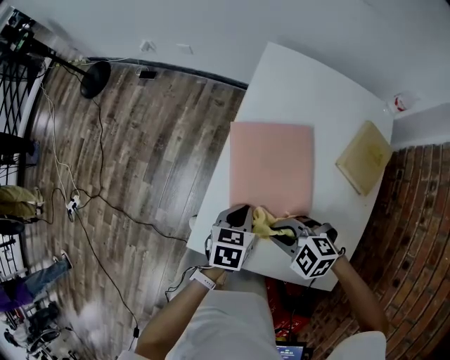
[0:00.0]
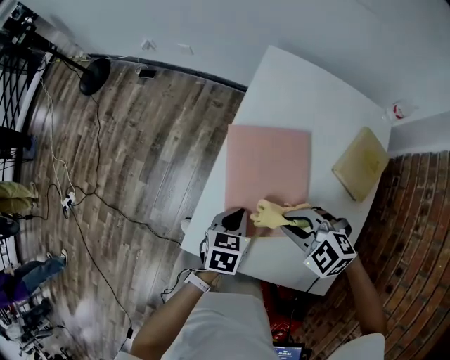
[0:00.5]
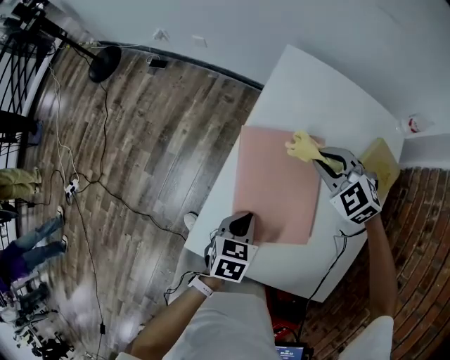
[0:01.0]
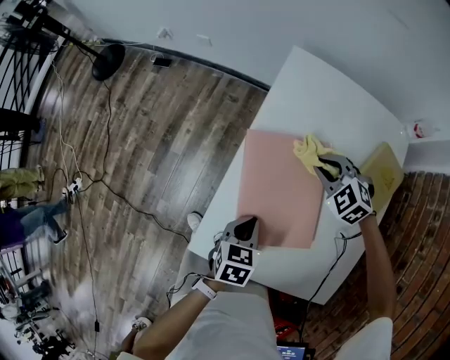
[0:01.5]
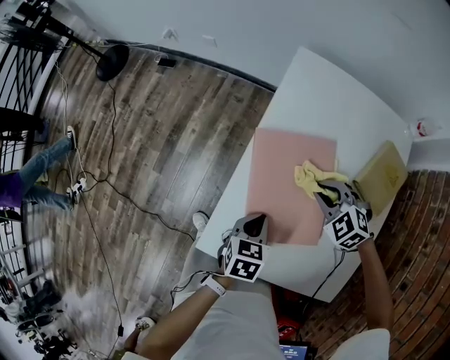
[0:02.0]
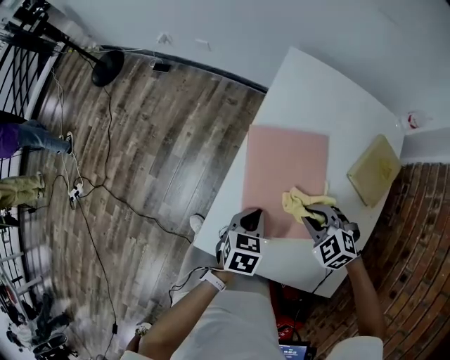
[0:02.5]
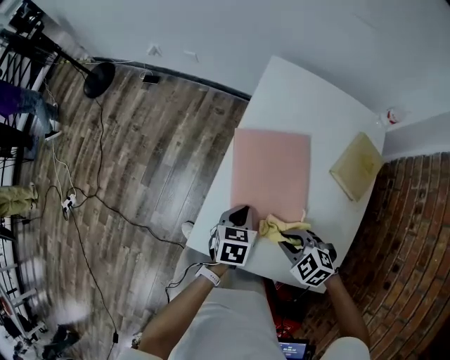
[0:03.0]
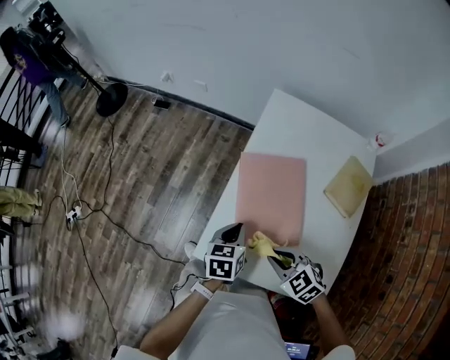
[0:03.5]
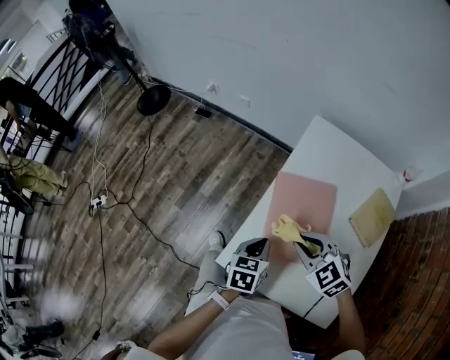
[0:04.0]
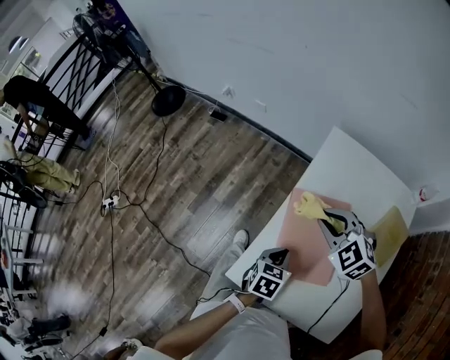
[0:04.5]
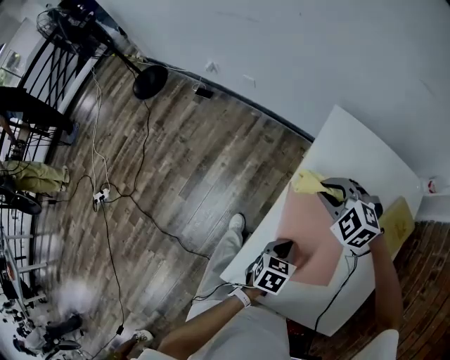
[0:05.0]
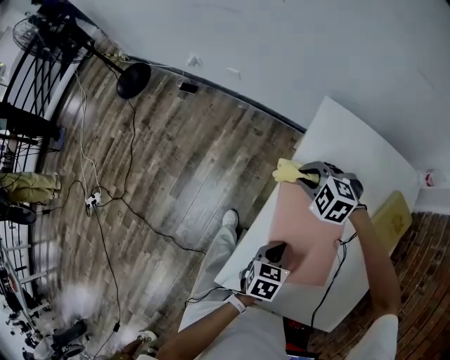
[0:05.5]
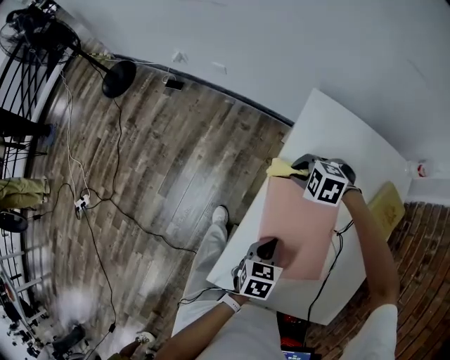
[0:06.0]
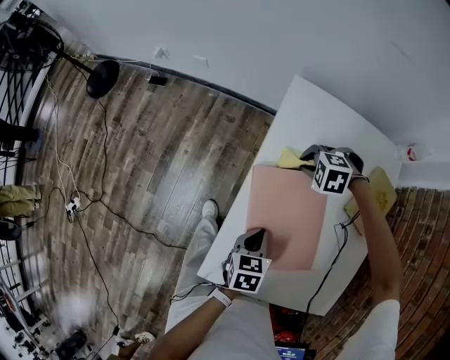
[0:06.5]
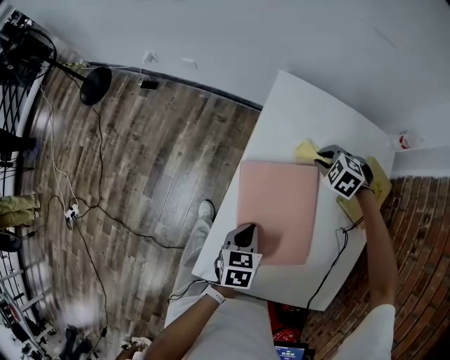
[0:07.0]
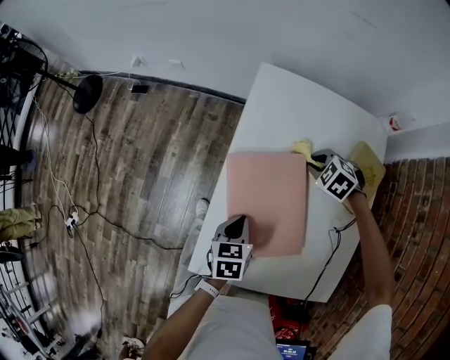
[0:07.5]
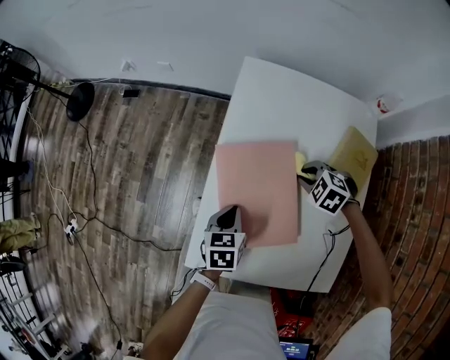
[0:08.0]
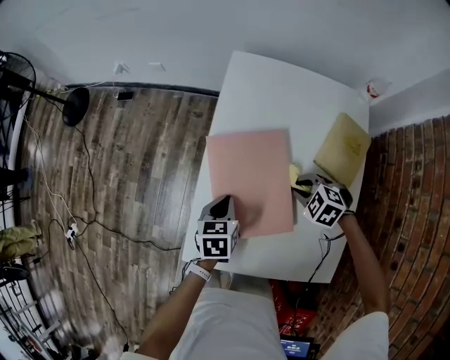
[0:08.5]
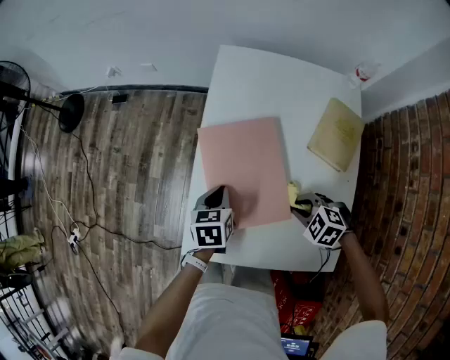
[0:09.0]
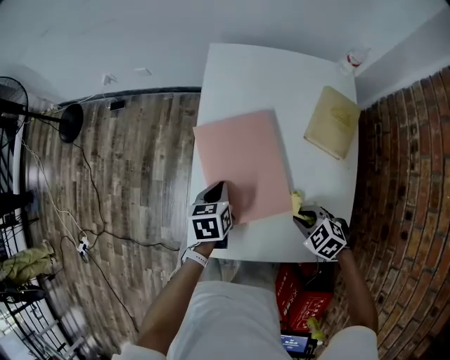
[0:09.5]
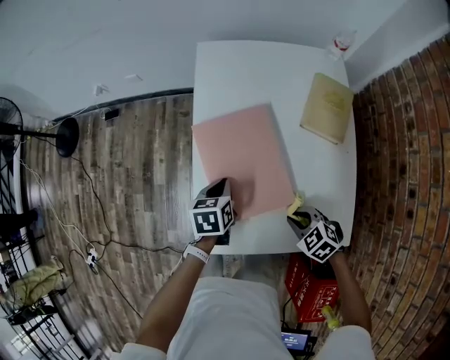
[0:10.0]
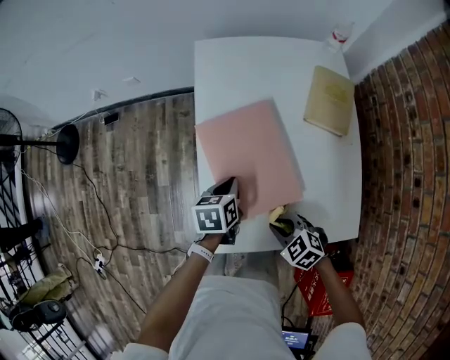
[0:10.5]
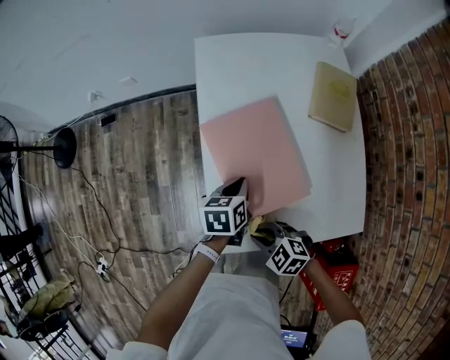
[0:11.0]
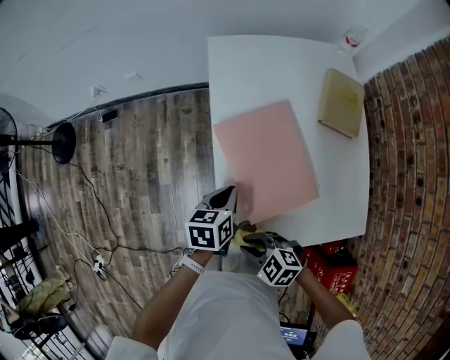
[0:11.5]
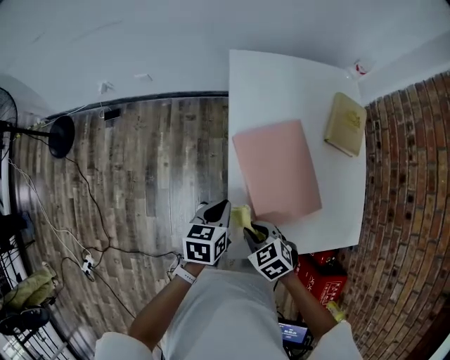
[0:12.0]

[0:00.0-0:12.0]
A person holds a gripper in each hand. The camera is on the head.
0:00.0 to 0:02.0: The right gripper is displaced forward and to the right by approximately 20 cm, and turns by approximately 20 degrees.
0:02.0 to 0:04.0: The right gripper travels upward, to the left and backward by approximately 20 cm. Meanwhile the left gripper shifts about 10 cm upward.
0:04.0 to 0:06.0: The right gripper goes some 30 cm forward and downward, and swivels about 30 degrees; the left gripper shifts some 10 cm downward, to the right and forward.
0:06.0 to 0:08.0: The right gripper shifts by some 20 cm, and turns by some 20 degrees.
0:08.0 to 0:10.0: The right gripper moves backward, about 25 cm, and rotates approximately 30 degrees.
0:10.0 to 0:12.0: The left gripper travels to the left by roughly 10 cm. Meanwhile the right gripper heads to the left, covering approximately 25 cm.

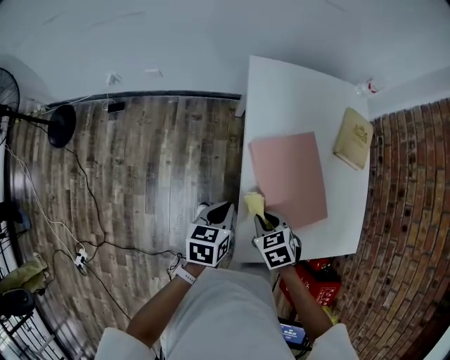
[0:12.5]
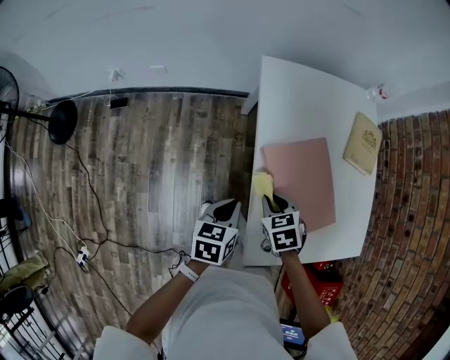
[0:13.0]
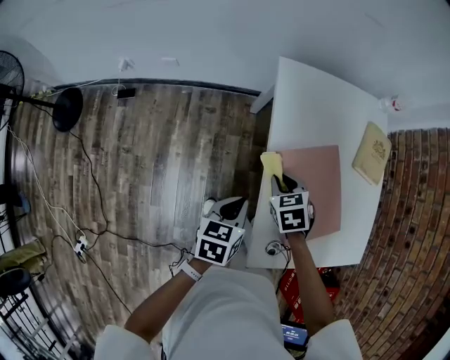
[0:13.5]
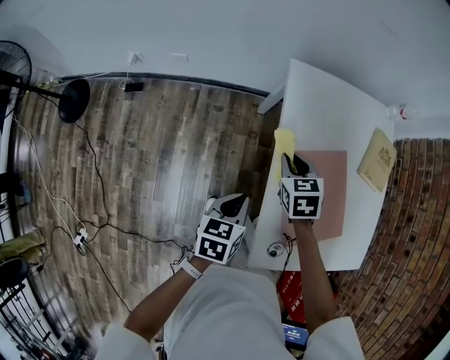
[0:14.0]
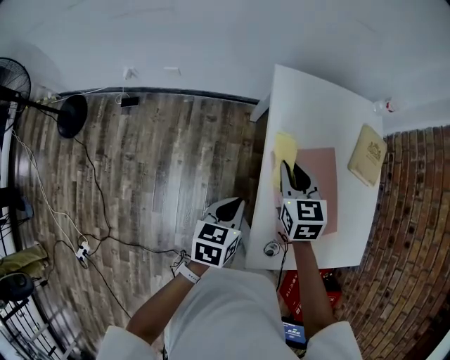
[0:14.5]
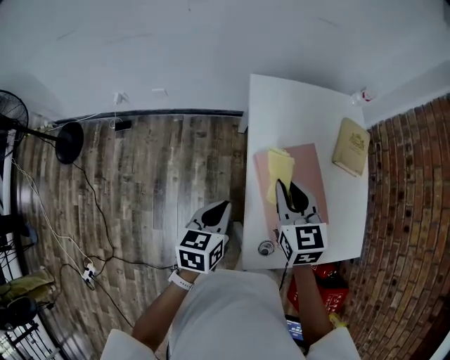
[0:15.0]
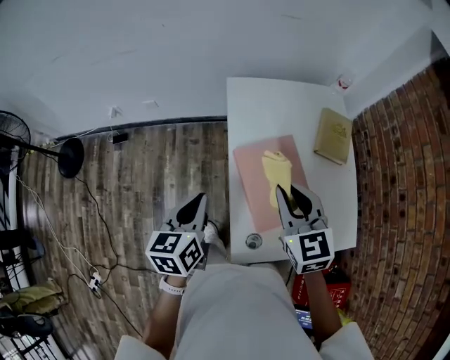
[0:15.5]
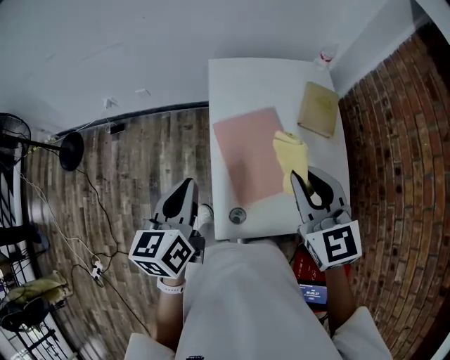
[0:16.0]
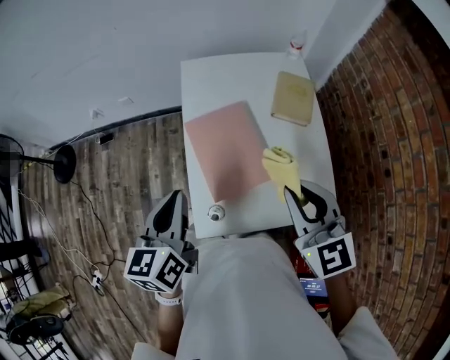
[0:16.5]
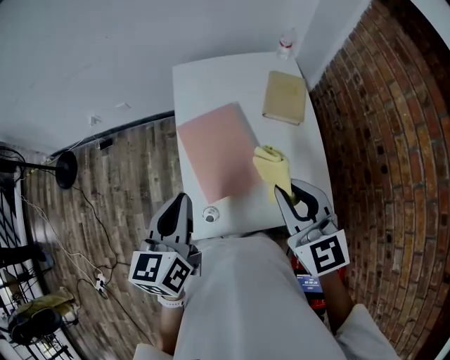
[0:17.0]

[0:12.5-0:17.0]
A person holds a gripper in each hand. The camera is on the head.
0:12.5 to 0:14.5: The right gripper goes approximately 20 cm forward and upward, and changes its angle by approximately 30 degrees. The left gripper shifts by about 5 cm.
0:14.5 to 0:17.0: The left gripper goes roughly 30 cm upward, to the right and backward, and turns by approximately 20 degrees. The right gripper shifts roughly 40 cm to the right, backward and upward, and swivels roughly 20 degrees.

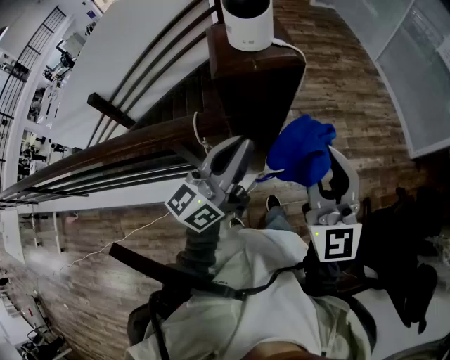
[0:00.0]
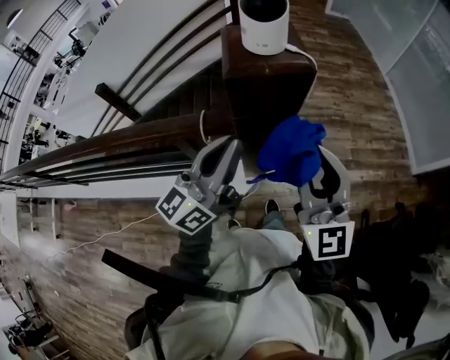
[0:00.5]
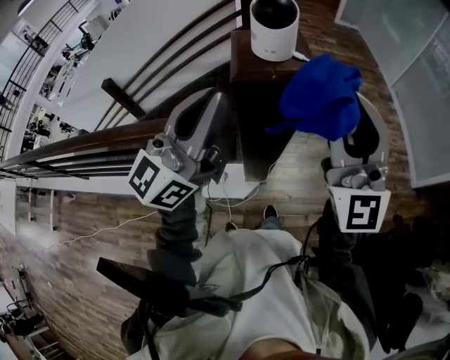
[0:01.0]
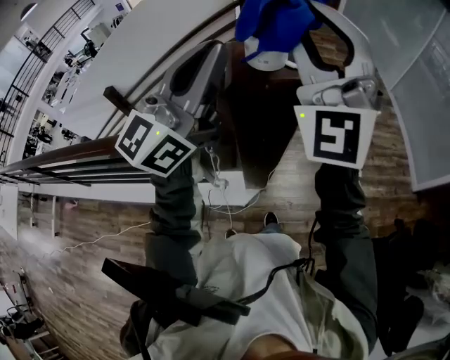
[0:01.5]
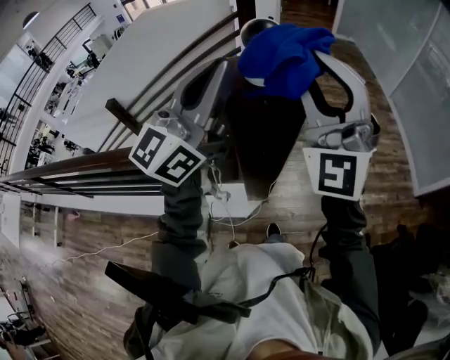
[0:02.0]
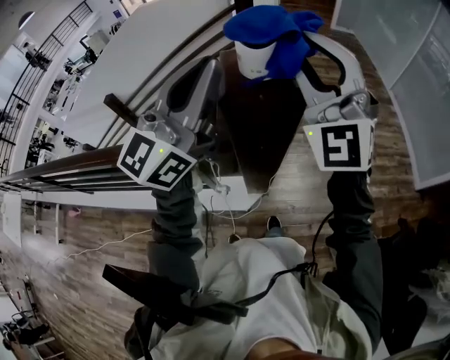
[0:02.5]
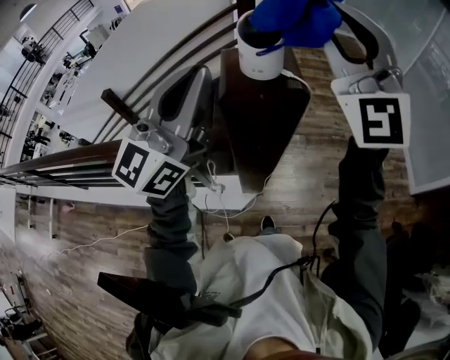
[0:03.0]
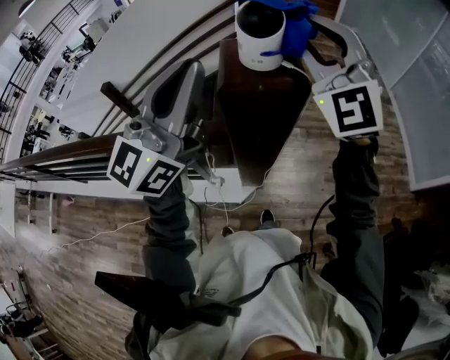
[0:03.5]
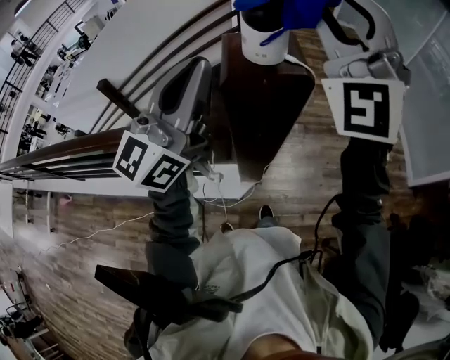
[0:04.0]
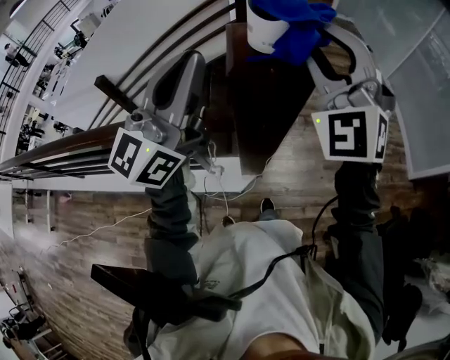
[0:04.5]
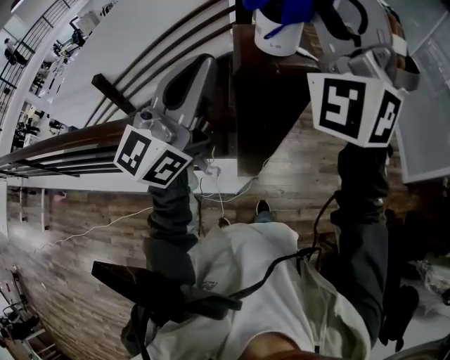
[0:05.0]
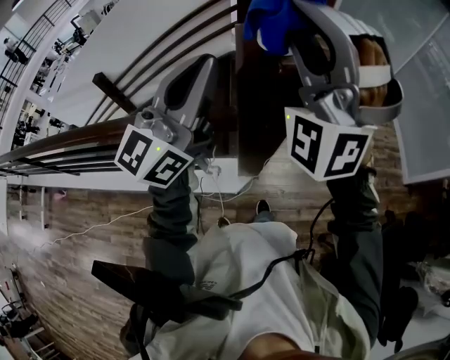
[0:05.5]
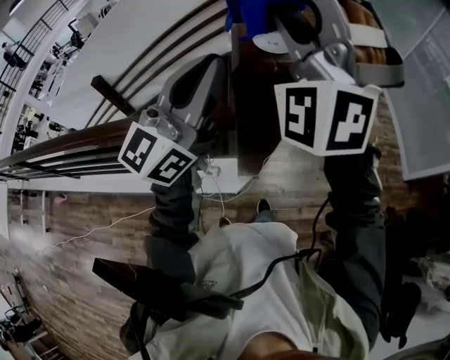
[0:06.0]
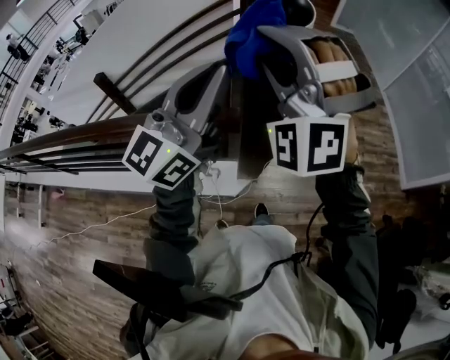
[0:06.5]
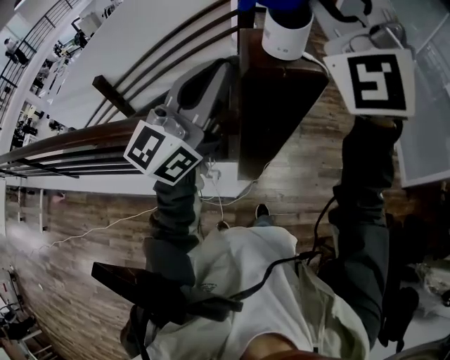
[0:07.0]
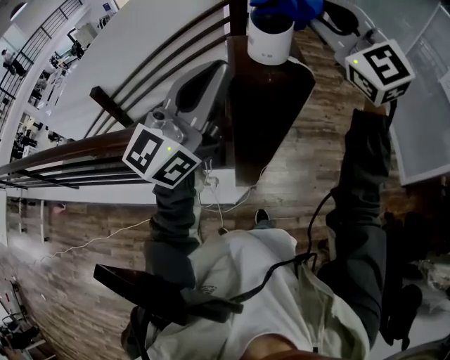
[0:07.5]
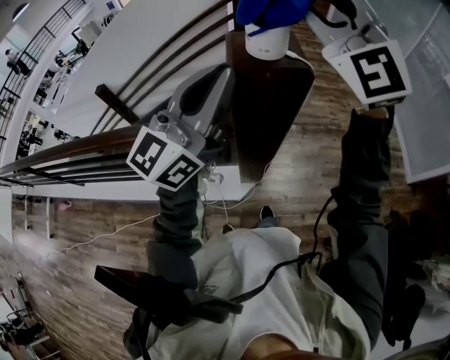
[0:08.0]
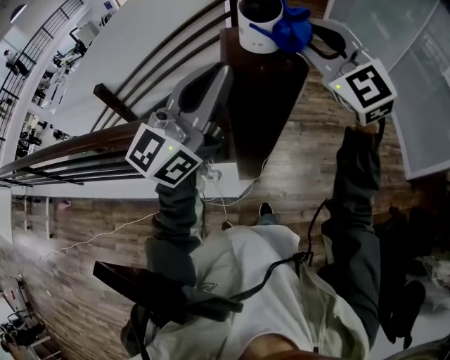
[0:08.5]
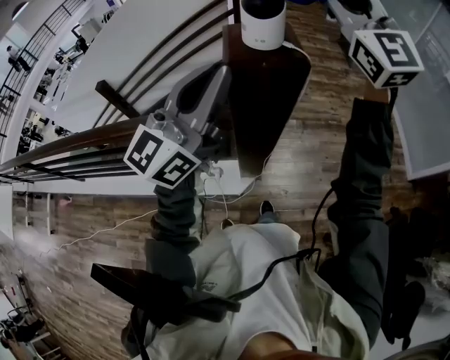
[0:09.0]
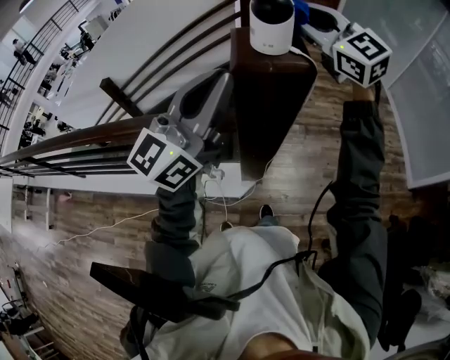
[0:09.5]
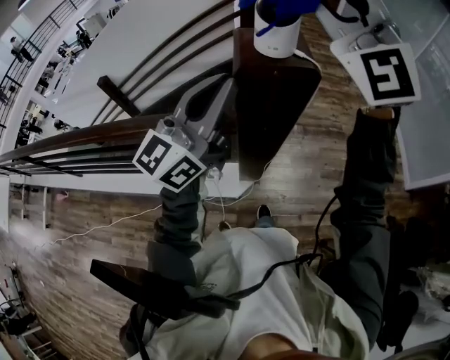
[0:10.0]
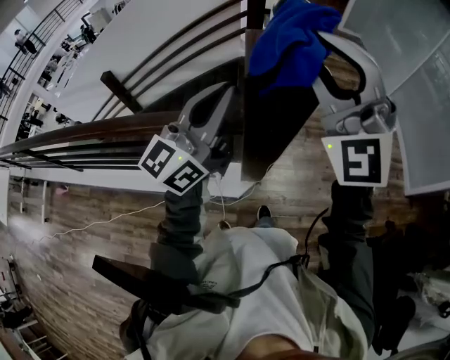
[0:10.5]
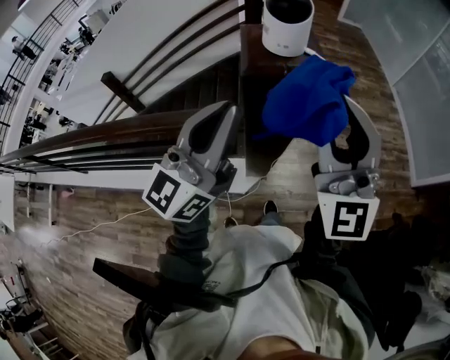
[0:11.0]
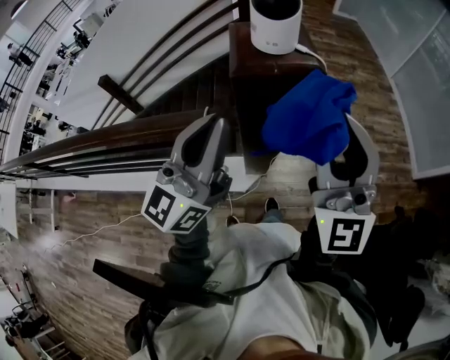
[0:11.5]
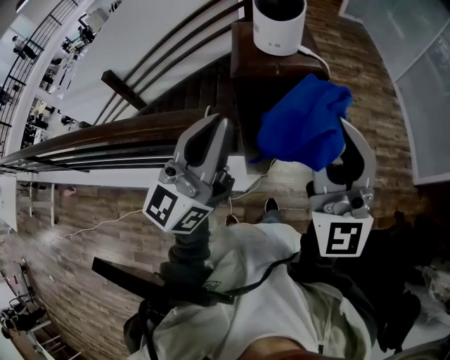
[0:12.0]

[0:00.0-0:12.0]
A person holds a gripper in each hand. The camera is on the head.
0:00.0 to 0:02.0: Both grippers move upward and forward, some 20 cm. The left gripper swivels some 30 degrees, while the right gripper rotates approximately 40 degrees.
0:02.0 to 0:04.0: The right gripper travels forward by some 5 cm.
0:04.0 to 0:06.0: The right gripper moves up and down over roughly 10 cm, changing direction 2 times, and rotates about 30 degrees.
0:06.0 to 0:08.0: The right gripper swings up and down, some 10 cm each way, with 2 reversals, and changes its angle by some 40 degrees.
0:08.0 to 0:10.0: The right gripper swings up and down, about 10 cm each way, with 3 reversals.
0:10.0 to 0:12.0: The right gripper heads downward and backward, covering about 20 cm, and changes its angle by approximately 30 degrees, while the left gripper shifts by approximately 5 cm.
